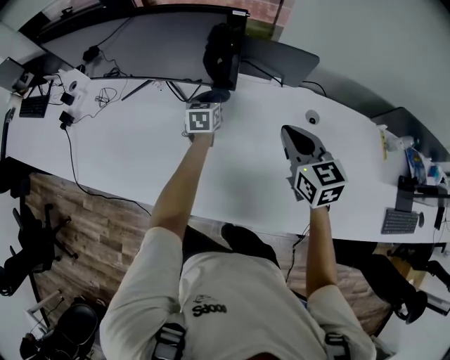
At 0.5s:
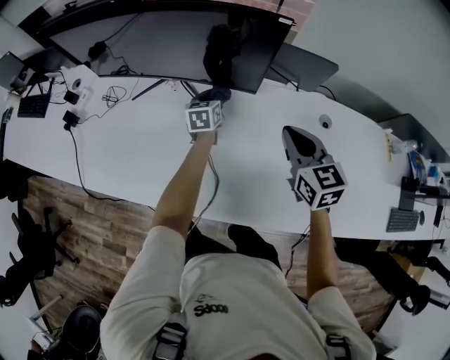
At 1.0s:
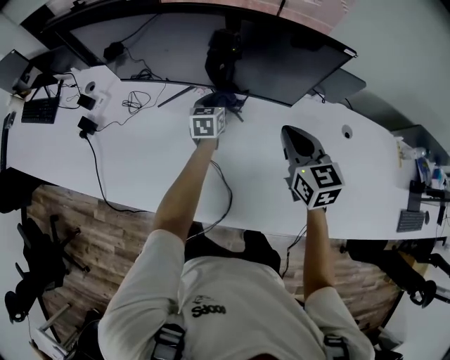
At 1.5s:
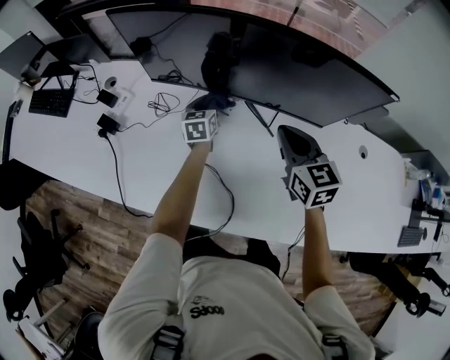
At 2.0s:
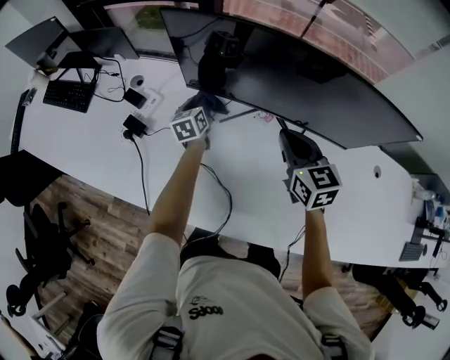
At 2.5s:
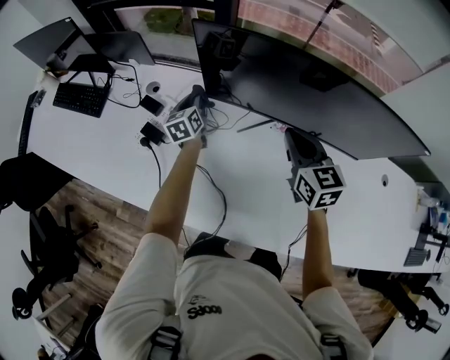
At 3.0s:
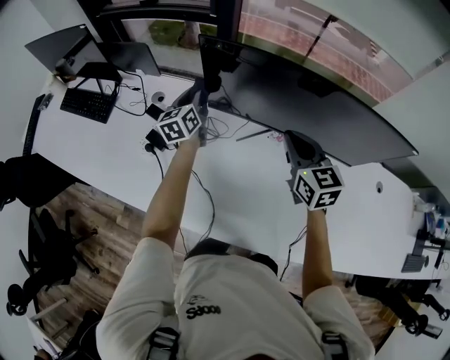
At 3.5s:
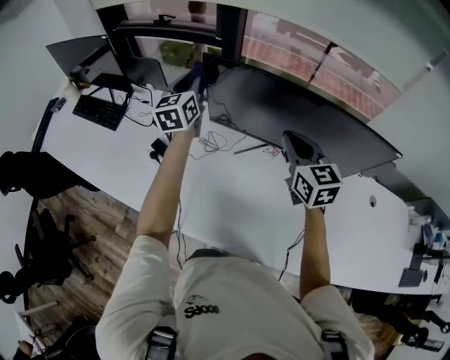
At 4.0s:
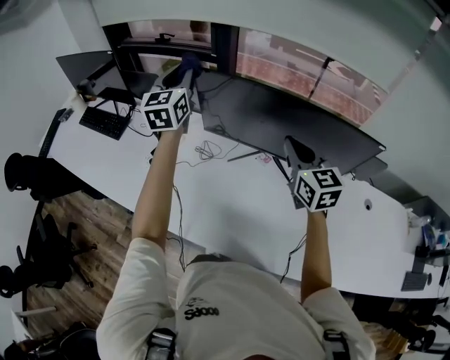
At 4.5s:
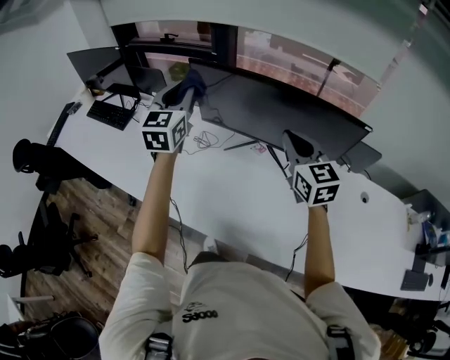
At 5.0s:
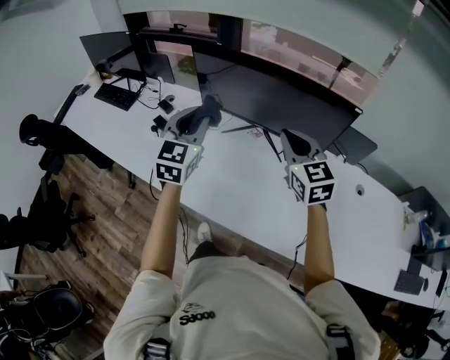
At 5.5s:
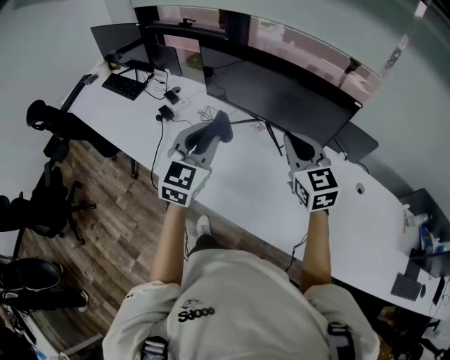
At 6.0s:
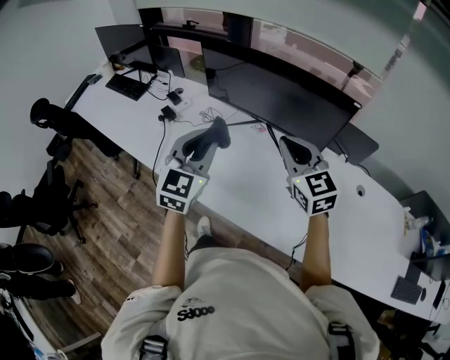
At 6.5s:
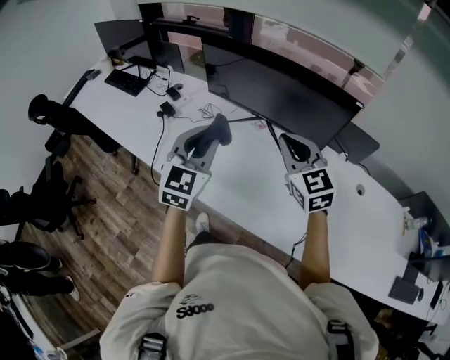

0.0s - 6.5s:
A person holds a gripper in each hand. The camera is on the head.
0.0s - 2.0s: Both grippers are carried to the left, approximately 50 cm. The left gripper rotates about 20 degrees.
2.0s - 4.5s: The left gripper heads upward and backward, covering roughly 40 cm, and swivels roughly 40 degrees. The right gripper shifts approximately 20 cm upward and backward.
4.5s - 6.5s: The left gripper is displaced backward by about 25 cm; the right gripper shifts approximately 15 cm backward.

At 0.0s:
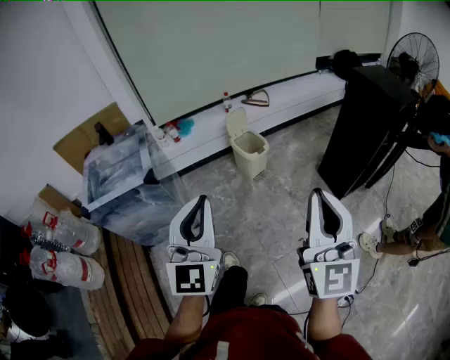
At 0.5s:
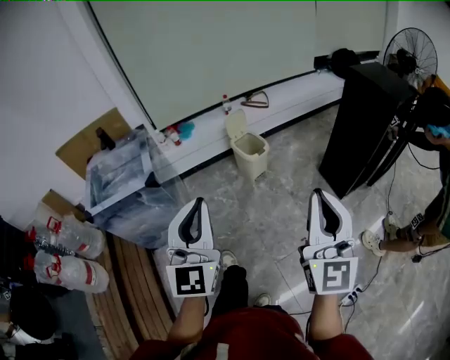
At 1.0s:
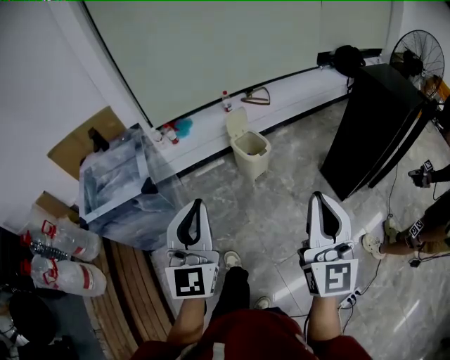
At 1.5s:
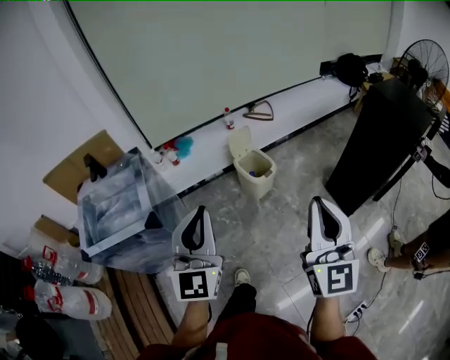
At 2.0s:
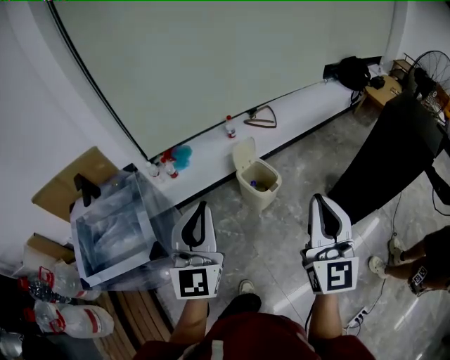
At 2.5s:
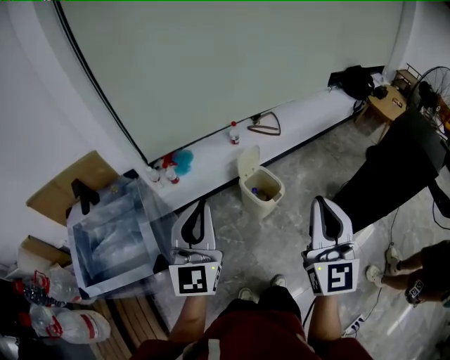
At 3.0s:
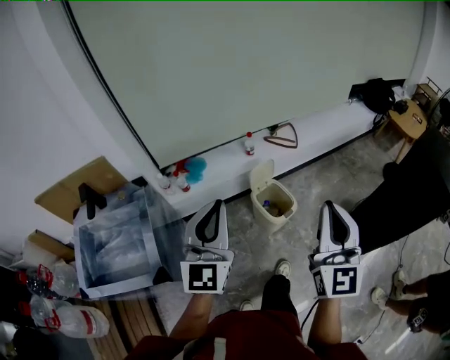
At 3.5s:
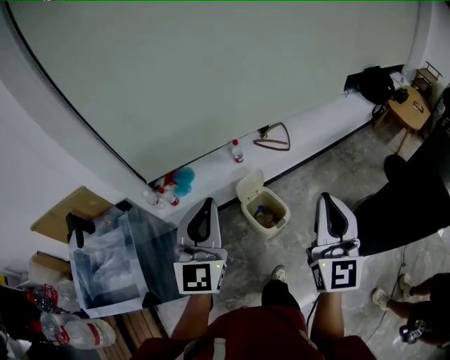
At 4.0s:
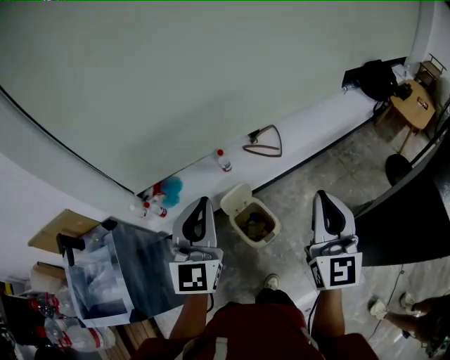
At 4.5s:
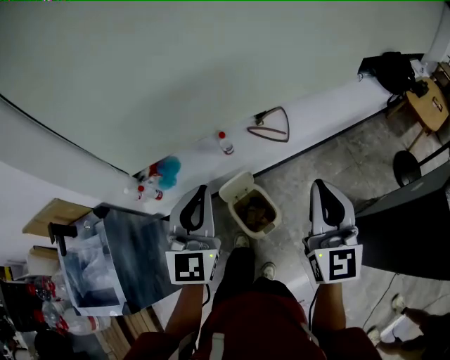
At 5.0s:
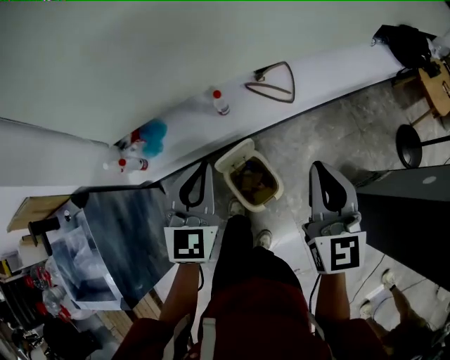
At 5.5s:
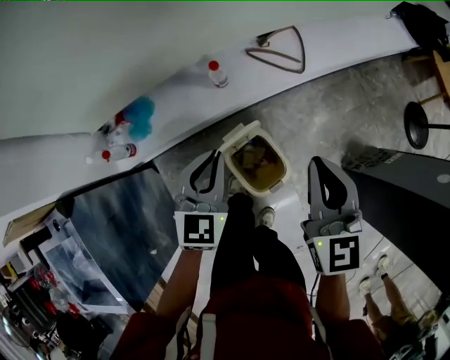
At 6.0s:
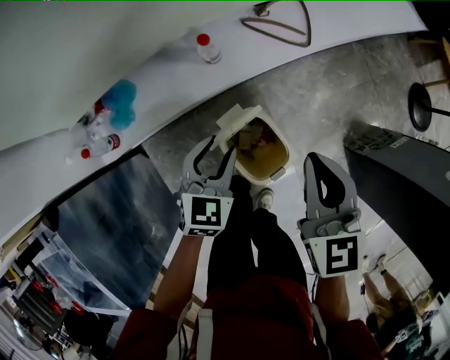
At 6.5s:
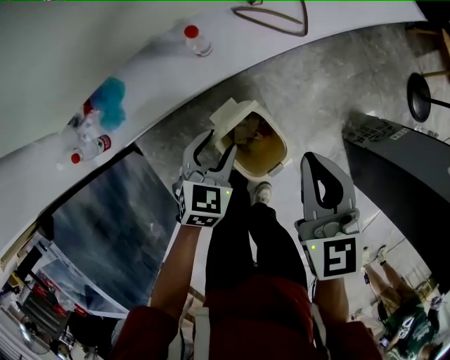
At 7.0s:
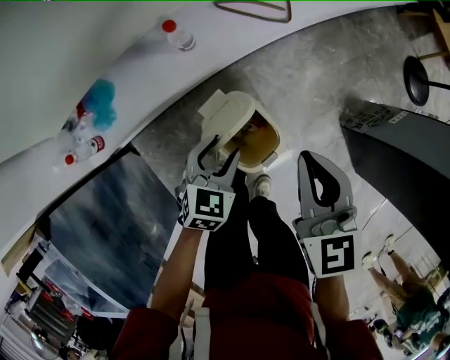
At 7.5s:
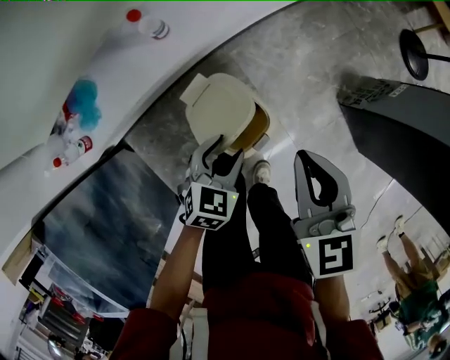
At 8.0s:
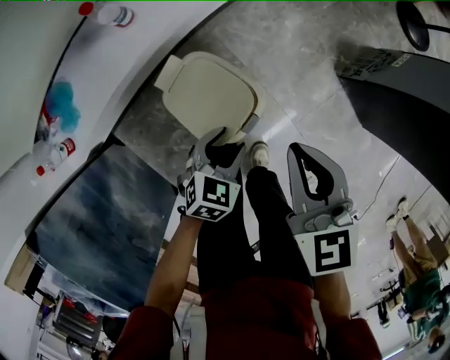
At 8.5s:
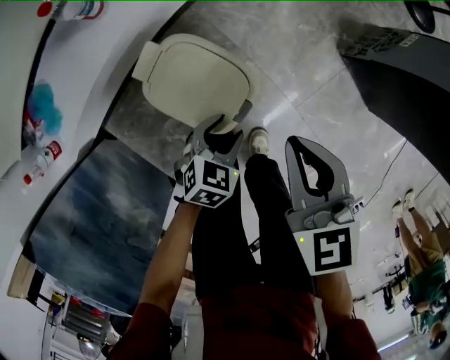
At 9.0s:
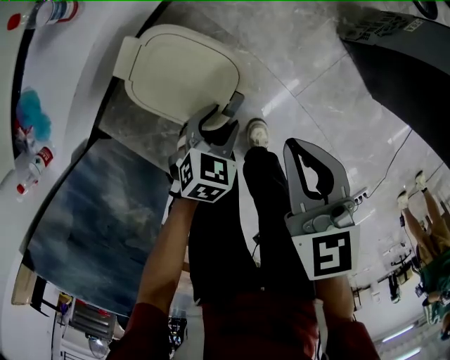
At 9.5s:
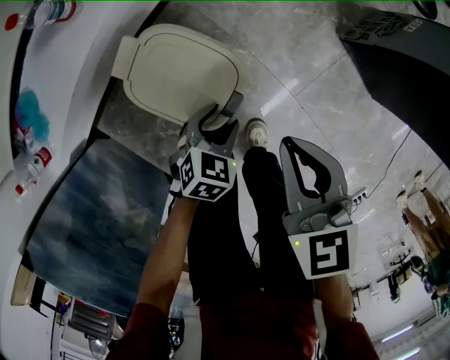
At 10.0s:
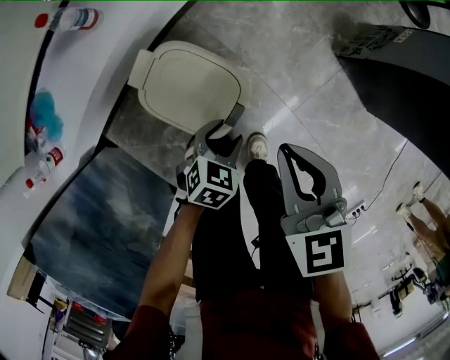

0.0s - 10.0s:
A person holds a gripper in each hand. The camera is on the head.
0.0s - 2.0s: The grippers both shift forward by roughly 35 cm.
2.0s - 4.0s: Both grippers travel together forward, approximately 35 cm.
4.0s - 6.0s: The right gripper is displaced downward and forward by approximately 35 cm, and tilts its fingers some 30 degrees downward, while the left gripper moves downward, approximately 40 cm, tips its fingers downward by approximately 40 degrees, and opens.
6.0s - 8.0s: The grippers both shift to the right, downward and backward by some 25 cm. The left gripper rotates about 30 degrees.
8.0s - 10.0s: The grippers both shift downward by about 5 cm.

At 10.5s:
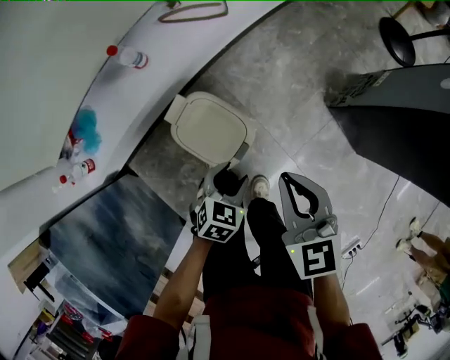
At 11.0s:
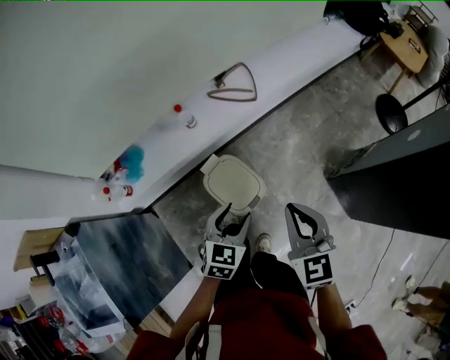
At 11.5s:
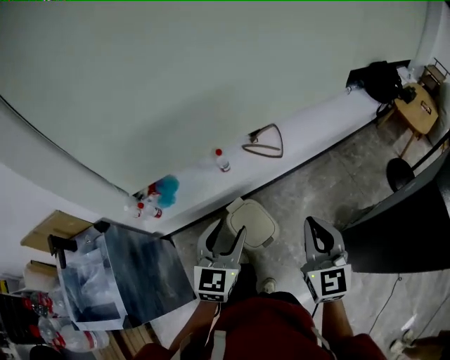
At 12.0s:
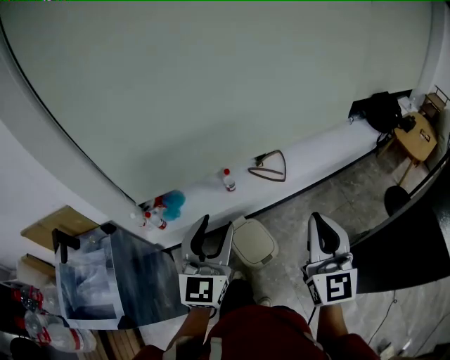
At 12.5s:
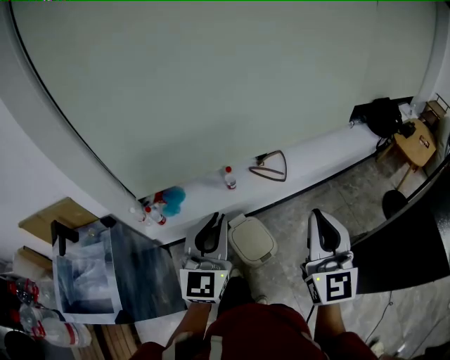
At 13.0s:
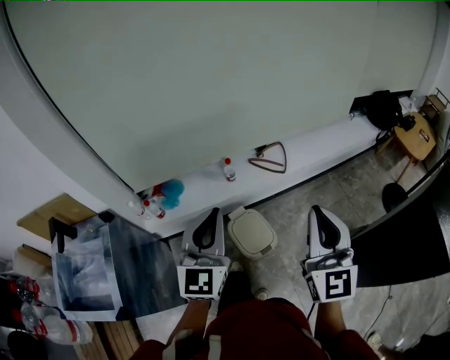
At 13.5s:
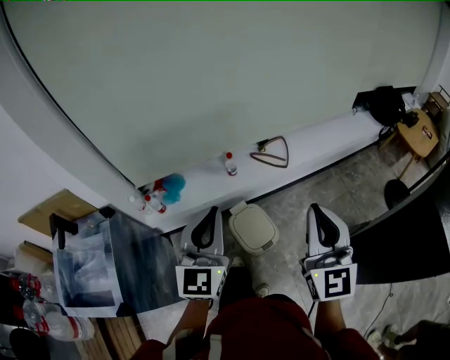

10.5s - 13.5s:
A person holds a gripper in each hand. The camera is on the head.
10.5s - 12.0s: The grippers both shift upward by some 50 cm. The left gripper angles its fingers upward, by about 60 degrees, while the right gripper points its fingers approximately 40 degrees further upward.
12.0s - 13.5s: The left gripper closes up.

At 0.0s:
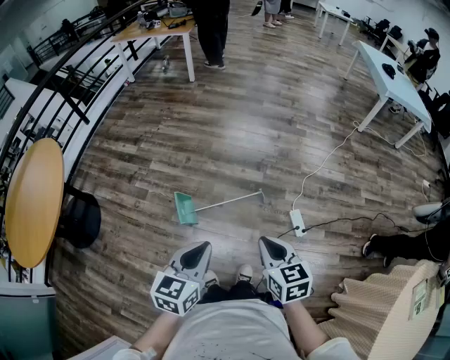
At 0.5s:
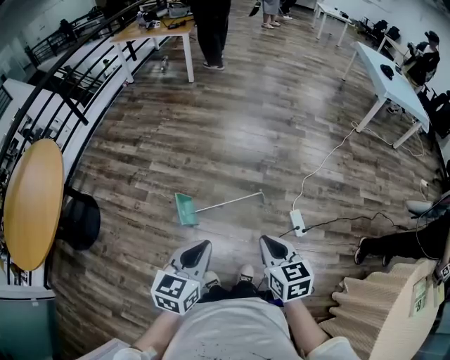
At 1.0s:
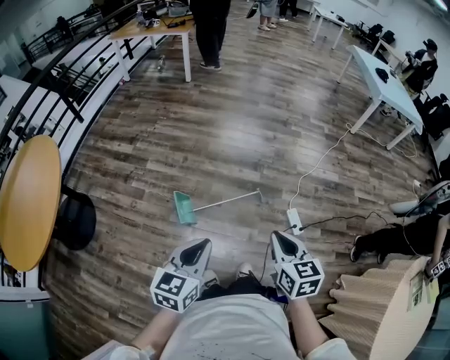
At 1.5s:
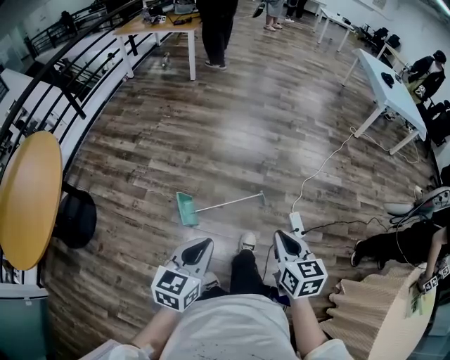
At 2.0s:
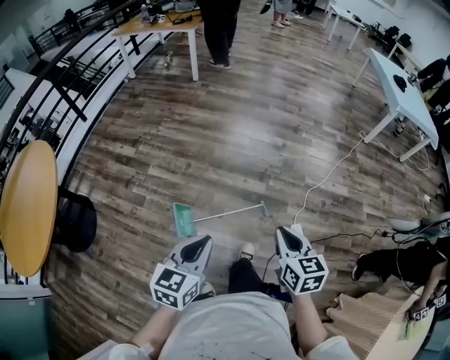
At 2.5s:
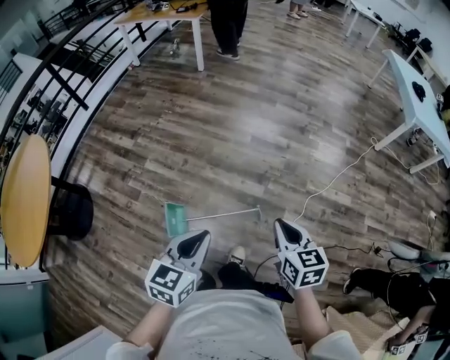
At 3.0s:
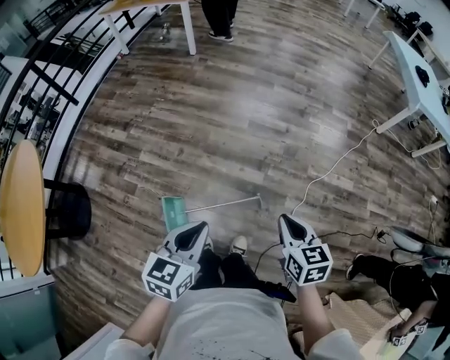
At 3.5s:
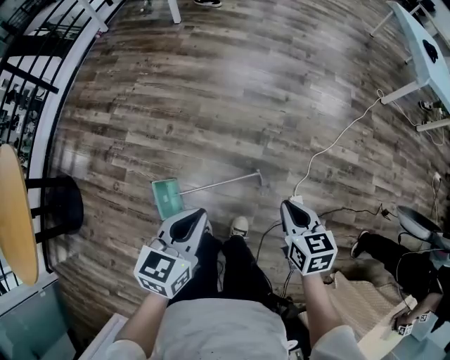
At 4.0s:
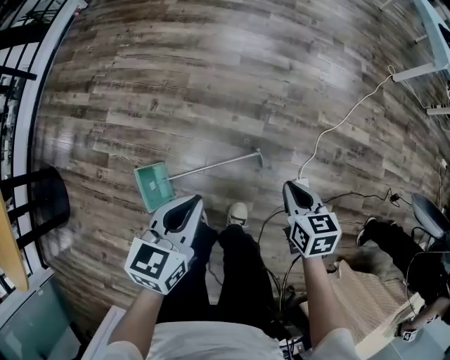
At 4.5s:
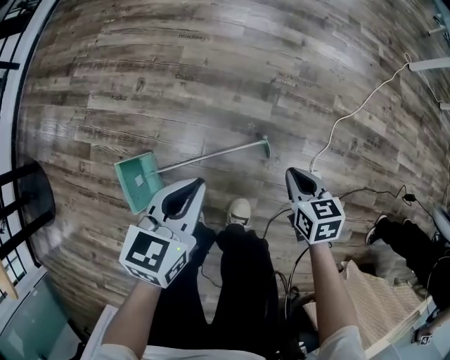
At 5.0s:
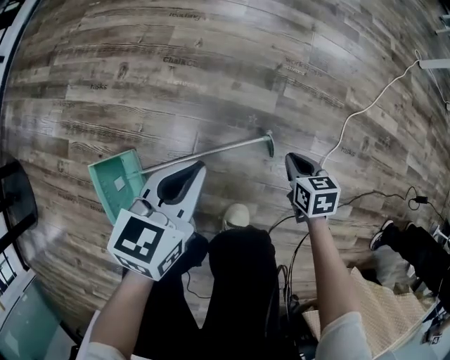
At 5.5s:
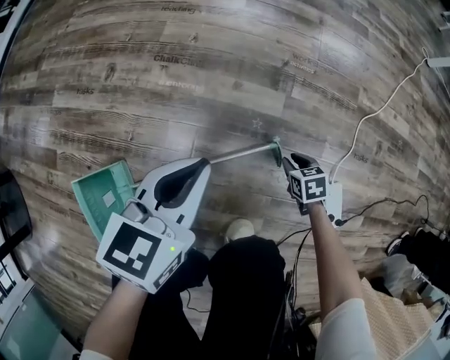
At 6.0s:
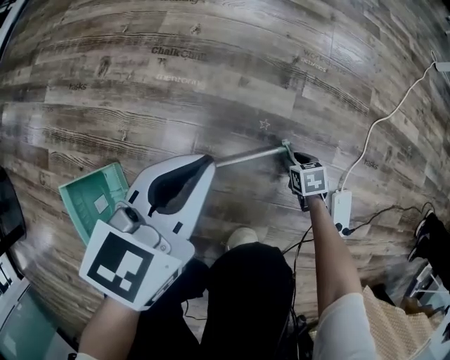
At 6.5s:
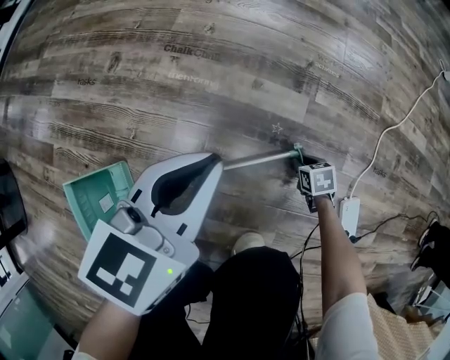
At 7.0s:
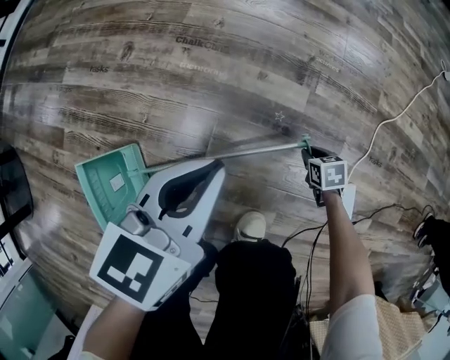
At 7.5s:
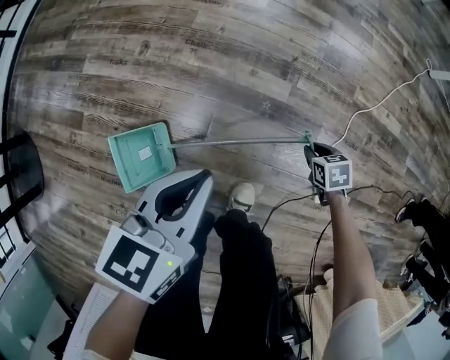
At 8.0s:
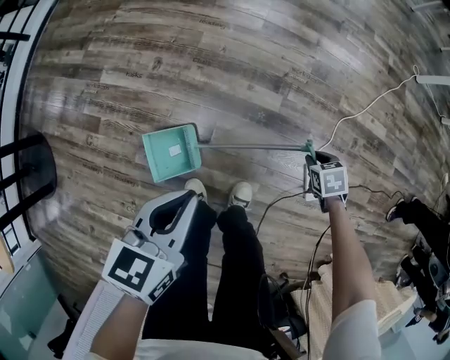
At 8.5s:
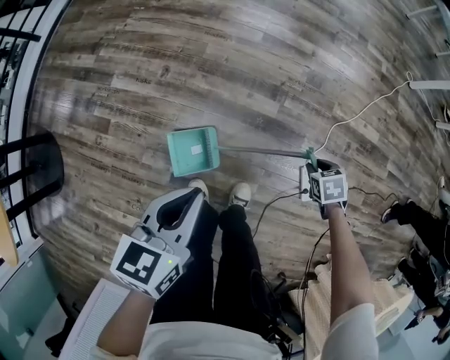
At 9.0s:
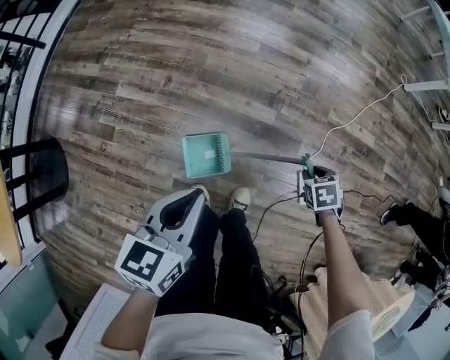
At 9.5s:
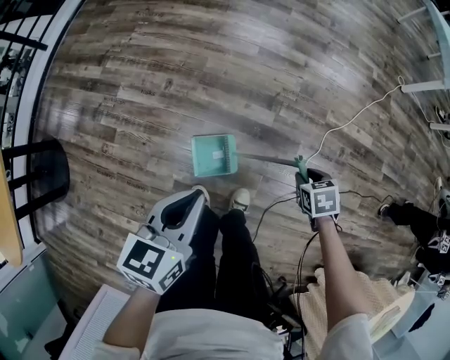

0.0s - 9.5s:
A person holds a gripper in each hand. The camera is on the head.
0.0s - 2.0s: Both grippers travel together forward, about 15 cm.
2.0s - 4.0s: The left gripper shifts roughly 35 cm forward and downward, while the right gripper travels downward and forward by roughly 40 cm.
4.0s - 5.5s: The left gripper is displaced downward by some 35 cm; the right gripper is displaced downward by some 60 cm, swivels some 20 degrees, and opens up.
5.5s - 7.5s: The two grippers go about 20 cm upward.
7.5s - 9.5s: The two grippers go roughly 25 cm upward.
